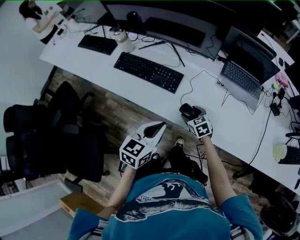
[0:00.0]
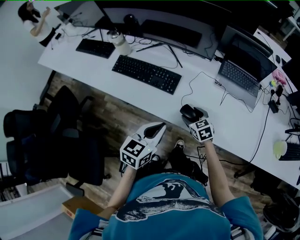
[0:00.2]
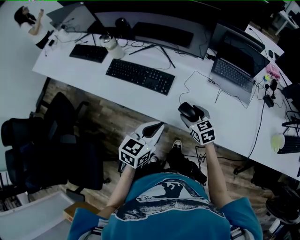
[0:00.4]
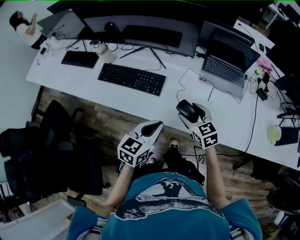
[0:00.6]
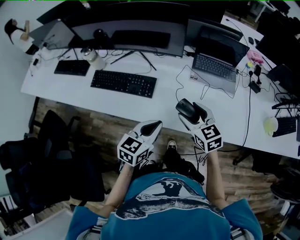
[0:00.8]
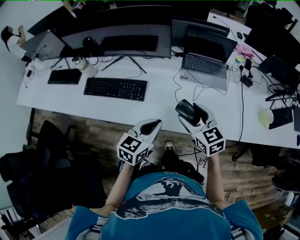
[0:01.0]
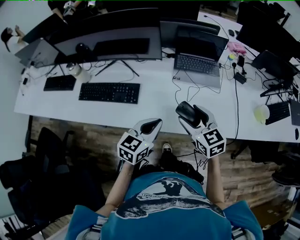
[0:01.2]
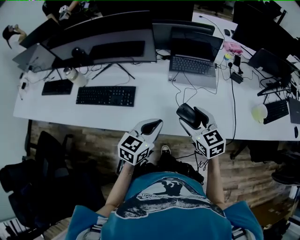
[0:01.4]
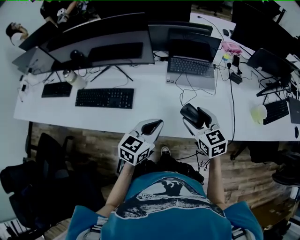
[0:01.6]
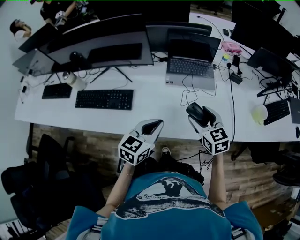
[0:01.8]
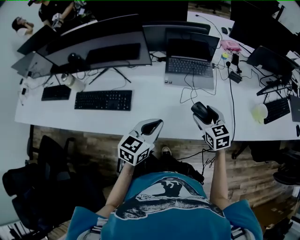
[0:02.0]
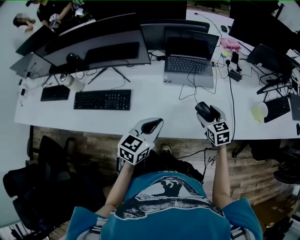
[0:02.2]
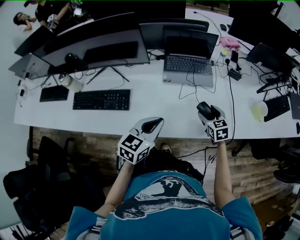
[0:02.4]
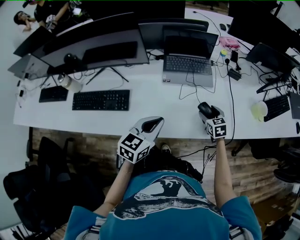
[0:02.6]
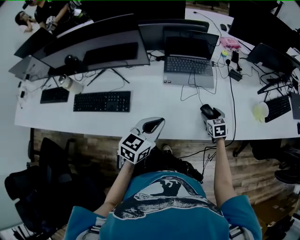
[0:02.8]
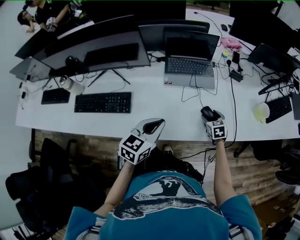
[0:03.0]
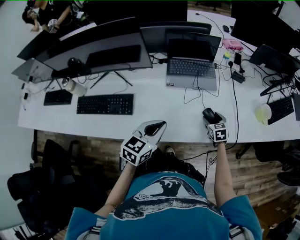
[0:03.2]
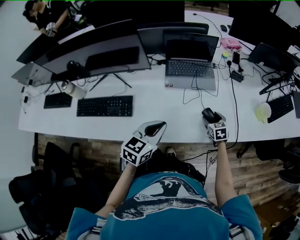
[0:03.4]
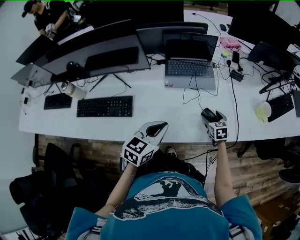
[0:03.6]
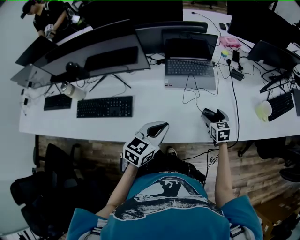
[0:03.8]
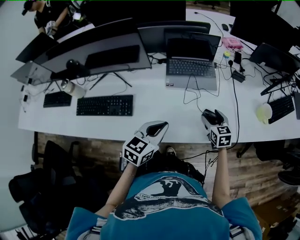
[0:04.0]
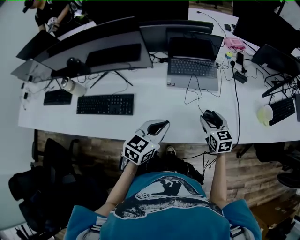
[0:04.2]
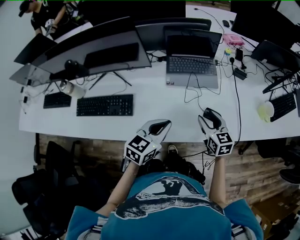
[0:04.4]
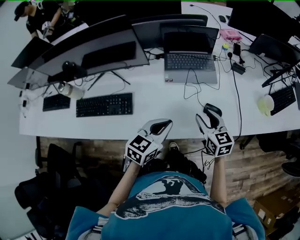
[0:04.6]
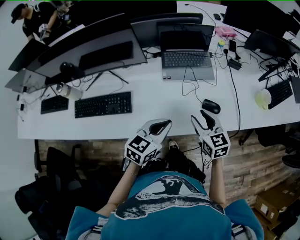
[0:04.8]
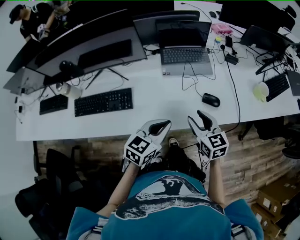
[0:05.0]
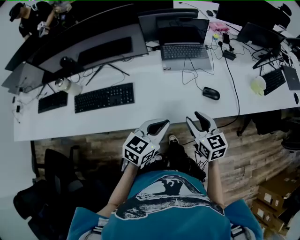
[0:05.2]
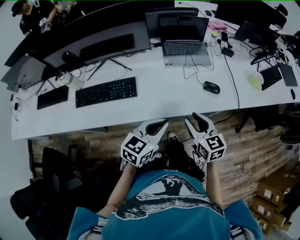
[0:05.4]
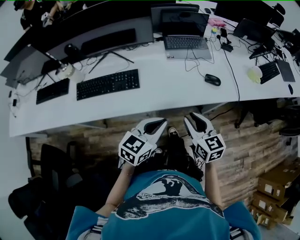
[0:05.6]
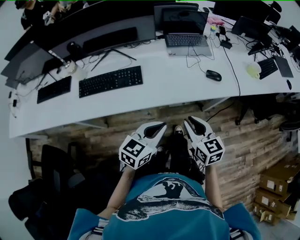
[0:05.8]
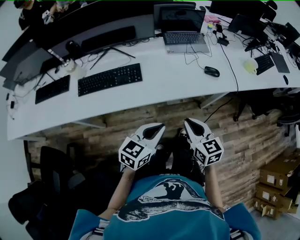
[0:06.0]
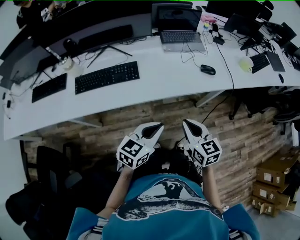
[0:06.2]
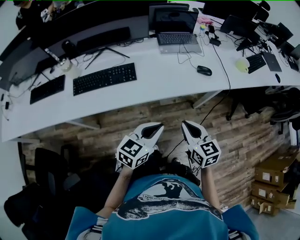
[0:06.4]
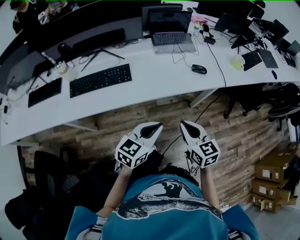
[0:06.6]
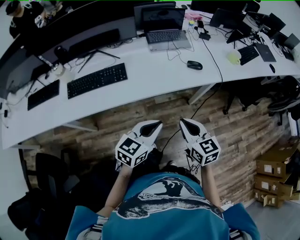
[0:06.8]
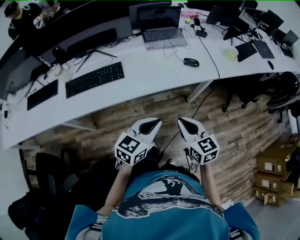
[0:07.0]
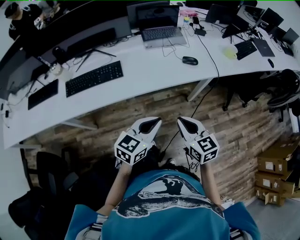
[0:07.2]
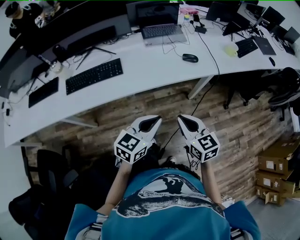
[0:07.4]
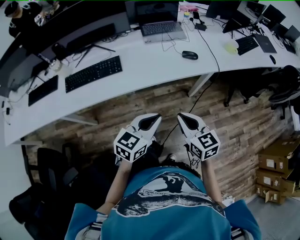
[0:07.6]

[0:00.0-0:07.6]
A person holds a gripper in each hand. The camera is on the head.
0:00.0 to 0:01.6: The right gripper travels upward and to the right by some 30 cm, and swivels roughly 30 degrees; the left gripper is displaced to the right by roughly 15 cm, and swivels about 20 degrees.
0:01.6 to 0:03.0: The right gripper shifts approximately 25 cm downward, to the right and forward, and turns by approximately 30 degrees.
0:03.0 to 0:04.6: The right gripper heads upward, to the left and backward, covering roughly 20 cm, and rotates some 30 degrees.
0:04.6 to 0:06.0: The right gripper moves backward and to the left, some 30 cm, and closes up; the left gripper travels backward by approximately 25 cm.
0:06.0 to 0:07.6: The left gripper moves to the right, some 10 cm. The right gripper is displaced to the right and backward by approximately 10 cm.

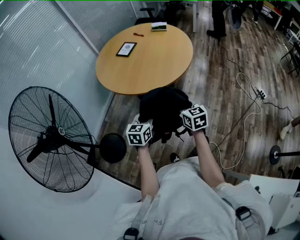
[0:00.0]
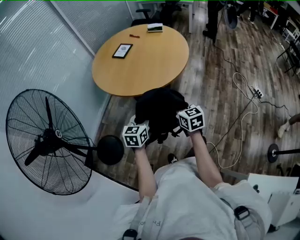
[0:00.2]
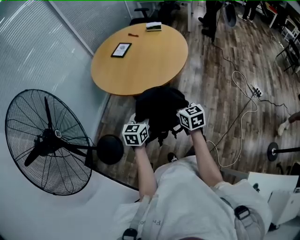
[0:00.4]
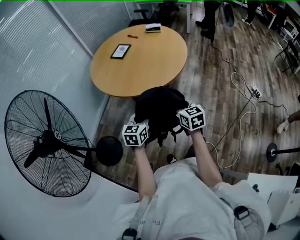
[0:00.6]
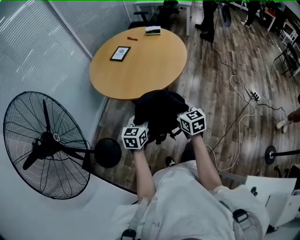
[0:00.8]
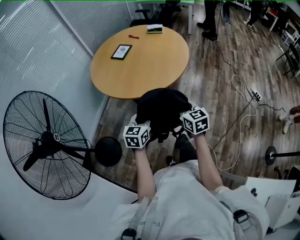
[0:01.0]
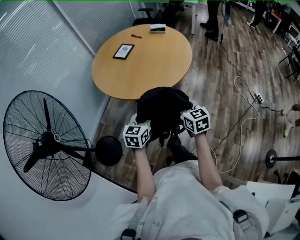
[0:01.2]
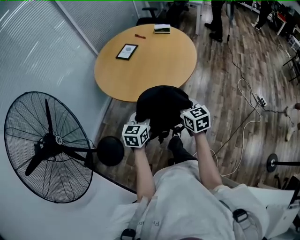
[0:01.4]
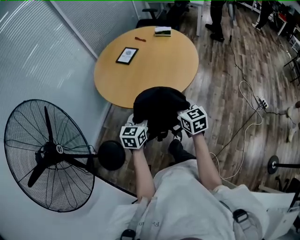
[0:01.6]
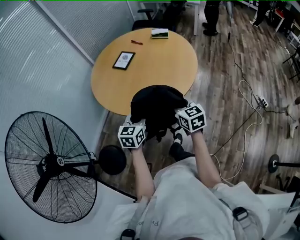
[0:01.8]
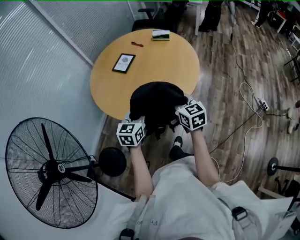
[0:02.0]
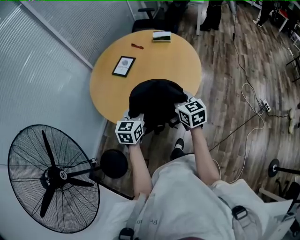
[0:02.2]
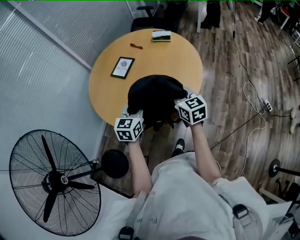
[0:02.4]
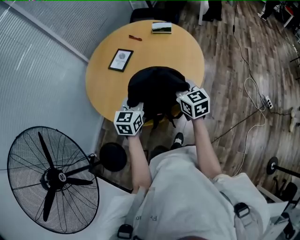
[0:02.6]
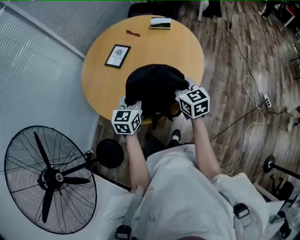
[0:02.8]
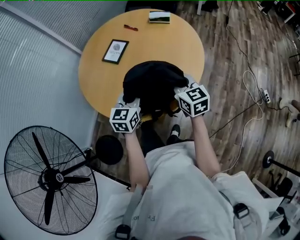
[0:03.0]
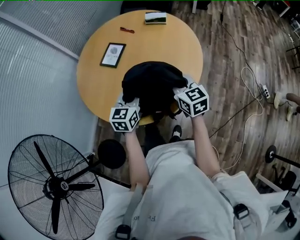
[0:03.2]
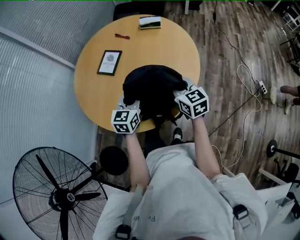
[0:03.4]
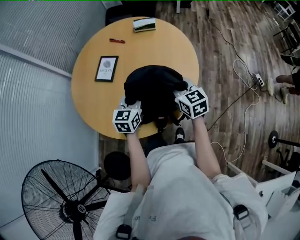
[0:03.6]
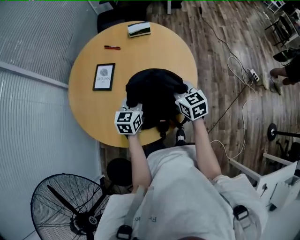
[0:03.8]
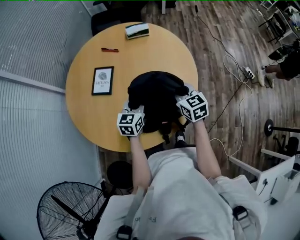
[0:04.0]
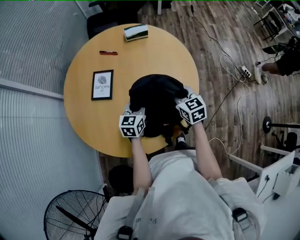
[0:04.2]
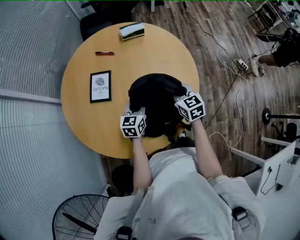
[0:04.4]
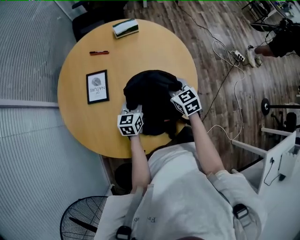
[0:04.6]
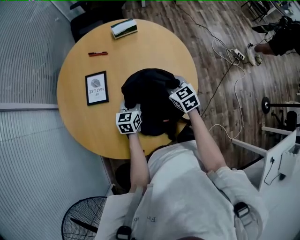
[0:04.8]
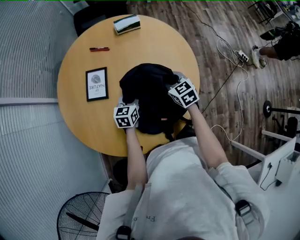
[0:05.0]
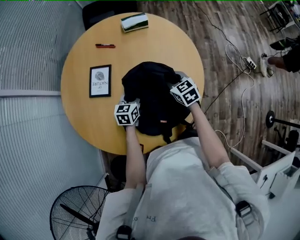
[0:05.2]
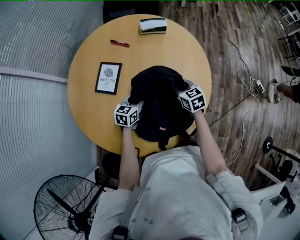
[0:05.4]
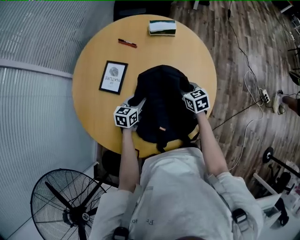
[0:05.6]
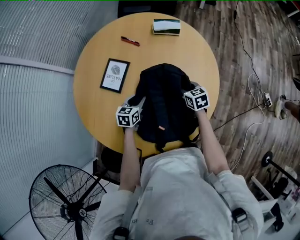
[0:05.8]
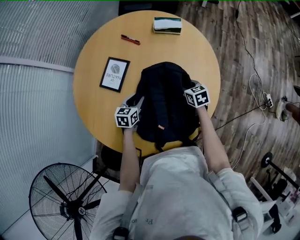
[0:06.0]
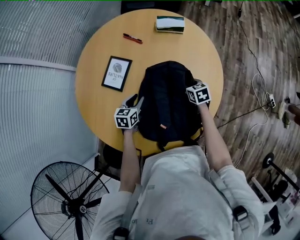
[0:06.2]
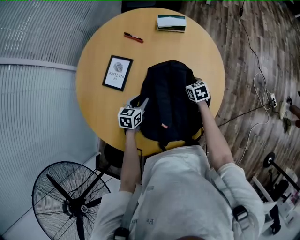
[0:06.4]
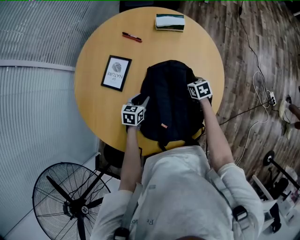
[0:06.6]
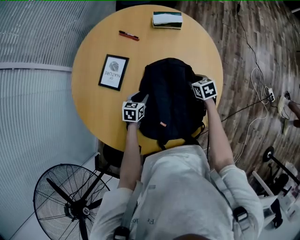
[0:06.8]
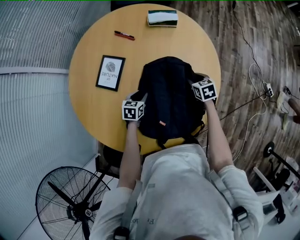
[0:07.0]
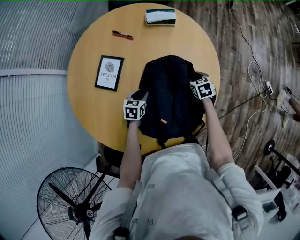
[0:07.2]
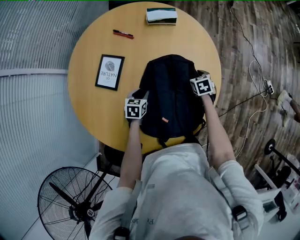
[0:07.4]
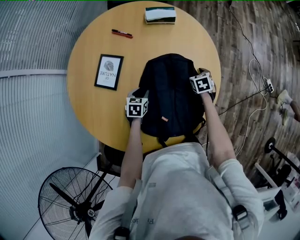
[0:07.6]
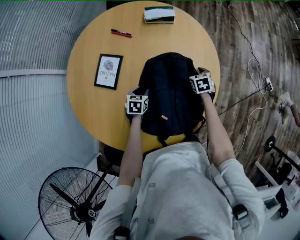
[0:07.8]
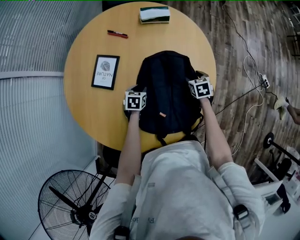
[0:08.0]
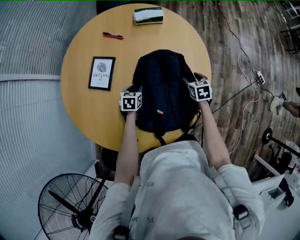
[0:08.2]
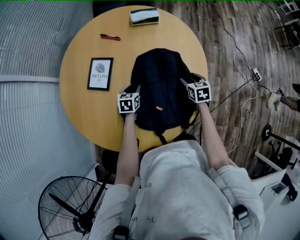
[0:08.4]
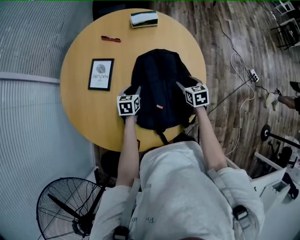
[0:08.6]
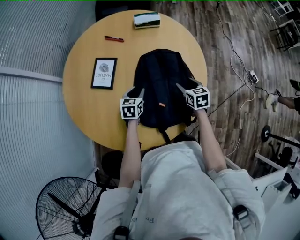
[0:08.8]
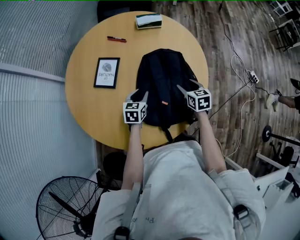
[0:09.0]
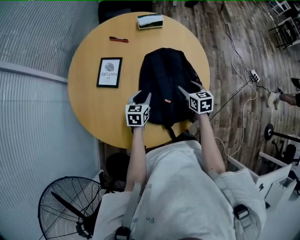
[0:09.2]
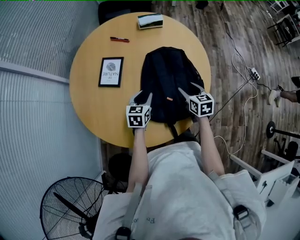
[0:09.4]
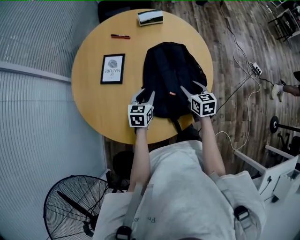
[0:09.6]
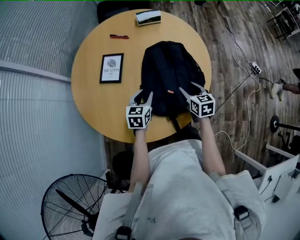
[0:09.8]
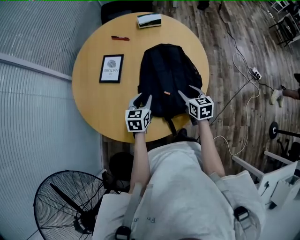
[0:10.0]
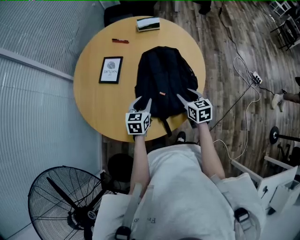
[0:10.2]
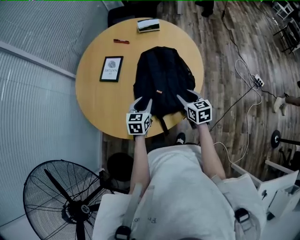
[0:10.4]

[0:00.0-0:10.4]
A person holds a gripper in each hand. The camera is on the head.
0:00.0 to 0:01.4: Both grippers travel together forward, approximately 10 cm.
0:01.4 to 0:03.0: The two grippers go approximately 35 cm forward.
0:03.0 to 0:04.4: The two grippers go about 15 cm forward and downward. The left gripper turns by approximately 20 degrees. Meanwhile the right gripper changes its angle by about 30 degrees.
0:04.4 to 0:06.0: The left gripper shifts some 15 cm downward, forward and to the left, and swivels roughly 20 degrees; the right gripper heads downward and forward, covering some 20 cm, and changes its angle by some 30 degrees.
0:06.0 to 0:07.4: The right gripper travels to the right and downward by approximately 10 cm, and opens up. Meanwhile the left gripper shifts about 5 cm downward.
0:07.4 to 0:09.0: The right gripper shifts some 20 cm backward and upward, and changes its angle by approximately 20 degrees, while the left gripper is displaced upward and backward by about 10 cm.
0:09.0 to 0:10.4: The right gripper shifts some 15 cm backward. The left gripper is displaced backward and upward by approximately 15 cm.

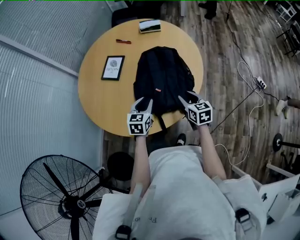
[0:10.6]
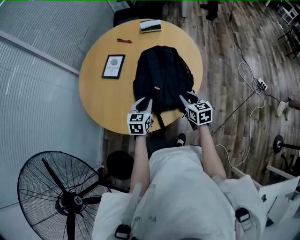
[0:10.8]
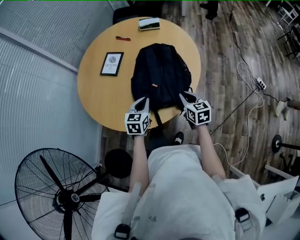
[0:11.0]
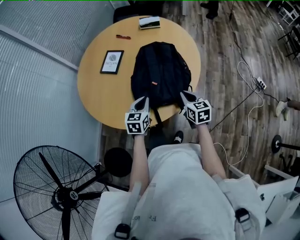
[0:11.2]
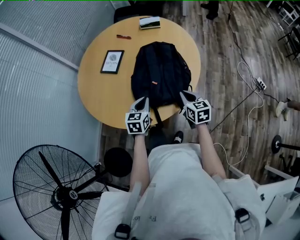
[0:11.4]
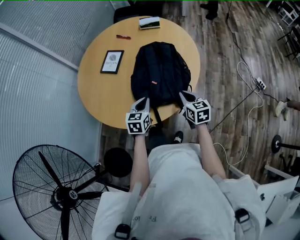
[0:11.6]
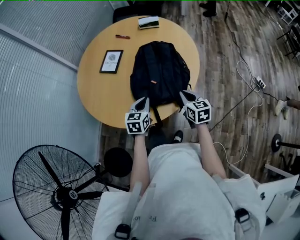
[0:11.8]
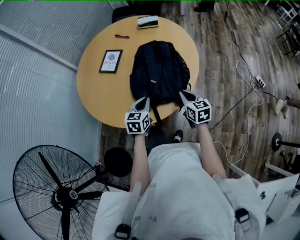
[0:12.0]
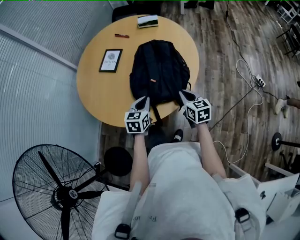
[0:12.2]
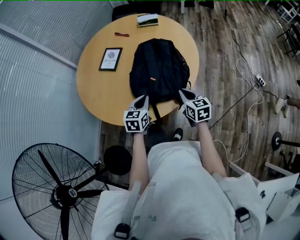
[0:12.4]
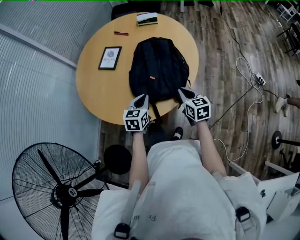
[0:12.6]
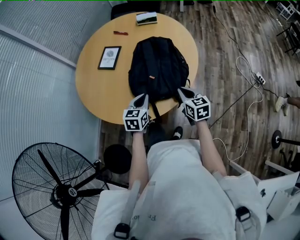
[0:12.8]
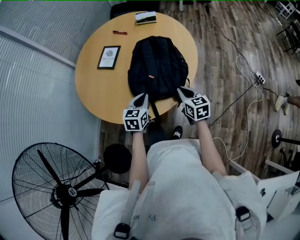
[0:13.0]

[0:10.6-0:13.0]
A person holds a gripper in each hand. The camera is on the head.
0:10.6 to 0:11.8: The right gripper moves approximately 5 cm, and closes; the left gripper travels backward by some 5 cm, and closes its fingers.
0:11.8 to 0:13.0: The two grippers keep their place.

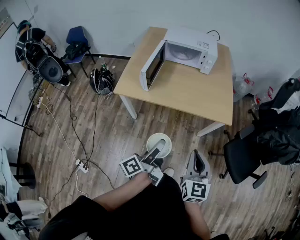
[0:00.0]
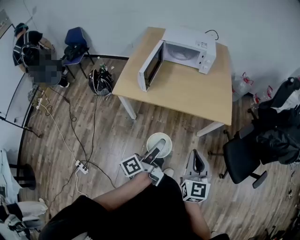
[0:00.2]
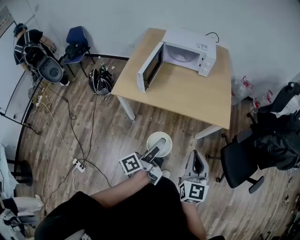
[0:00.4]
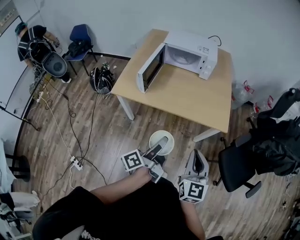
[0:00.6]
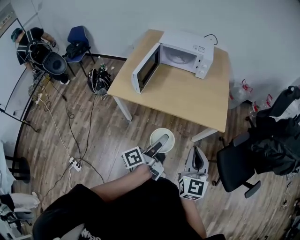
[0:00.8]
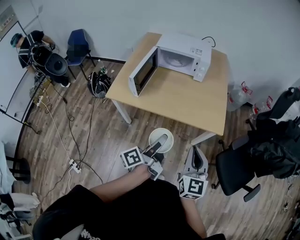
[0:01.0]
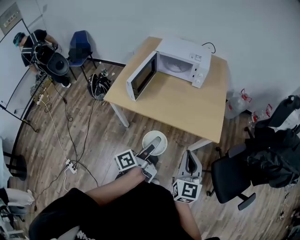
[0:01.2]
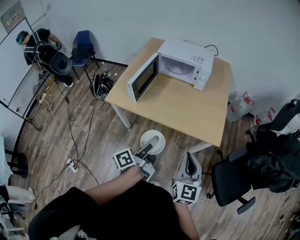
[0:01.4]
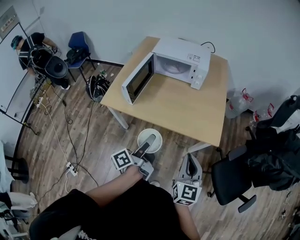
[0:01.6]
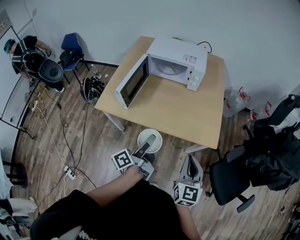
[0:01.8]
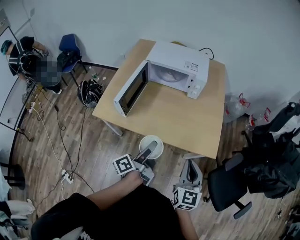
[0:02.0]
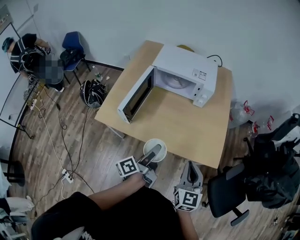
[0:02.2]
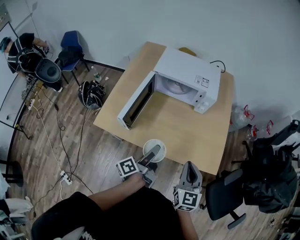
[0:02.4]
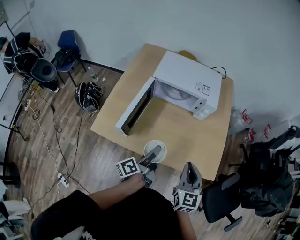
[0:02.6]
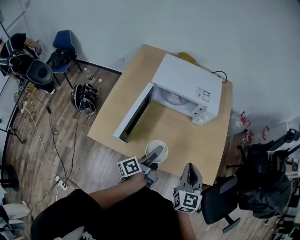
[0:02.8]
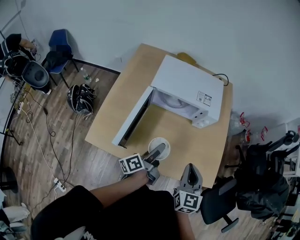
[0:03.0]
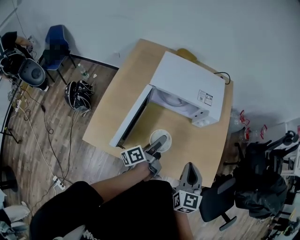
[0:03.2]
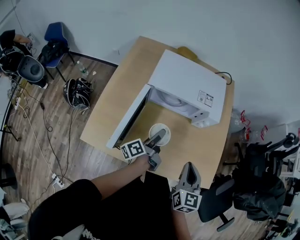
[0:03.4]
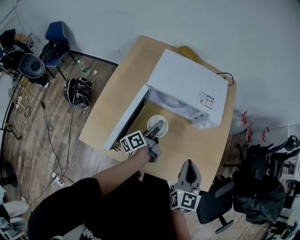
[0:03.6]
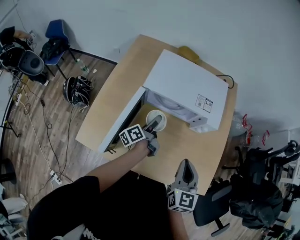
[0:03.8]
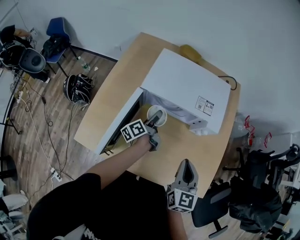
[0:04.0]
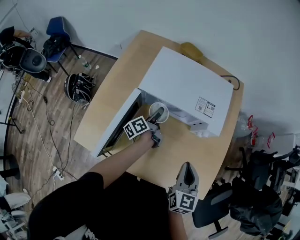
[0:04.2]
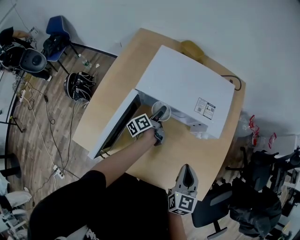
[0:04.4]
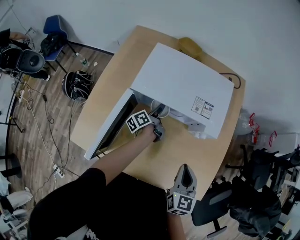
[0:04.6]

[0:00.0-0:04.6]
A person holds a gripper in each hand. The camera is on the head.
0:00.0 to 0:01.6: The two grippers go about 15 cm forward and to the right.
0:01.6 to 0:03.0: The right gripper moves forward and to the left, about 30 cm; the left gripper moves forward, roughly 30 cm.
0:03.0 to 0:04.6: The right gripper travels forward and downward by about 15 cm. Meanwhile the left gripper goes approximately 35 cm forward and downward.
